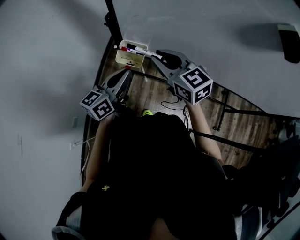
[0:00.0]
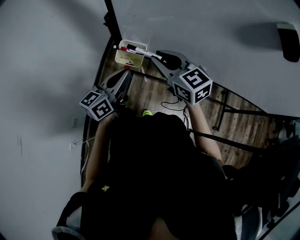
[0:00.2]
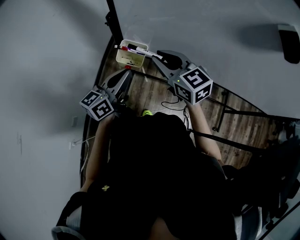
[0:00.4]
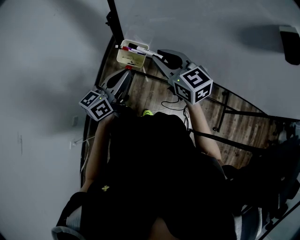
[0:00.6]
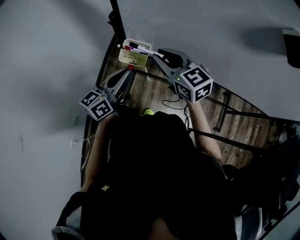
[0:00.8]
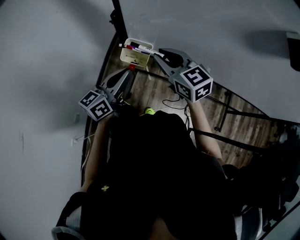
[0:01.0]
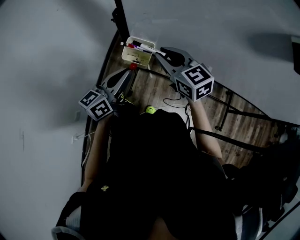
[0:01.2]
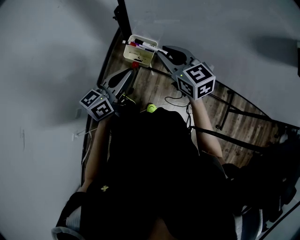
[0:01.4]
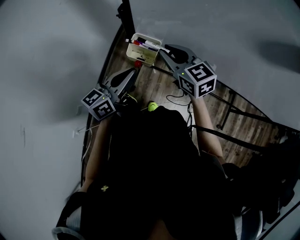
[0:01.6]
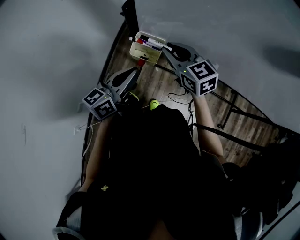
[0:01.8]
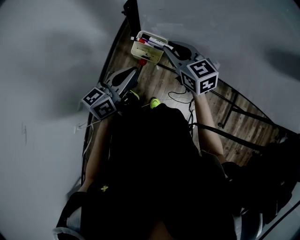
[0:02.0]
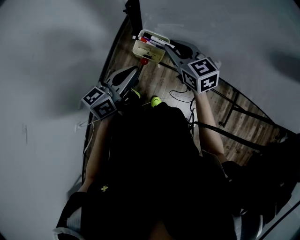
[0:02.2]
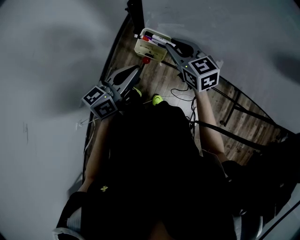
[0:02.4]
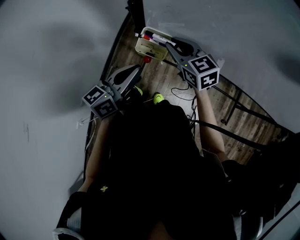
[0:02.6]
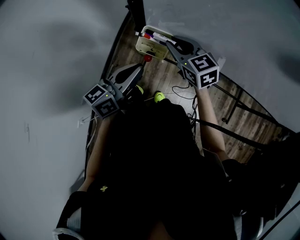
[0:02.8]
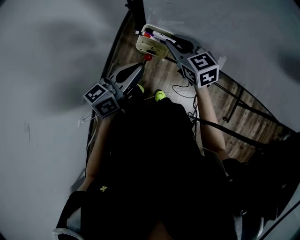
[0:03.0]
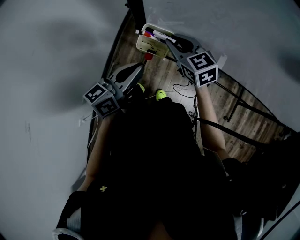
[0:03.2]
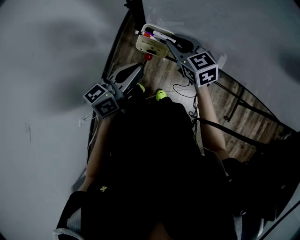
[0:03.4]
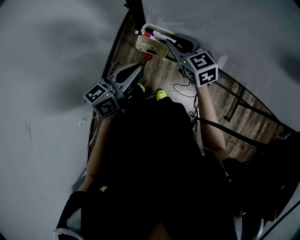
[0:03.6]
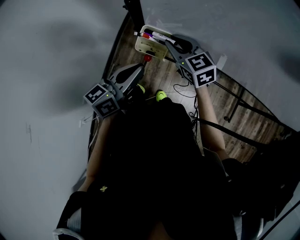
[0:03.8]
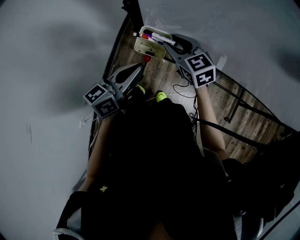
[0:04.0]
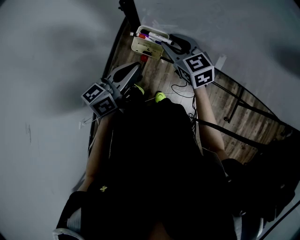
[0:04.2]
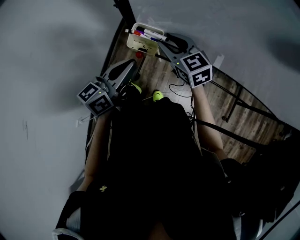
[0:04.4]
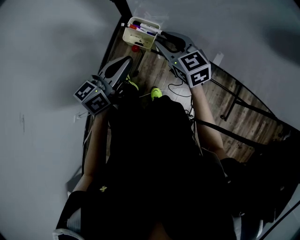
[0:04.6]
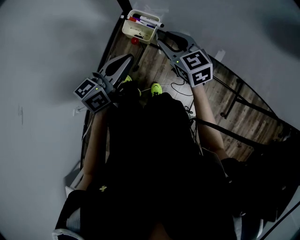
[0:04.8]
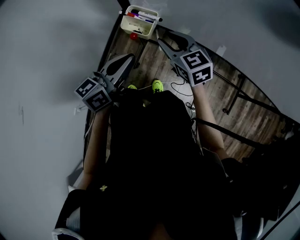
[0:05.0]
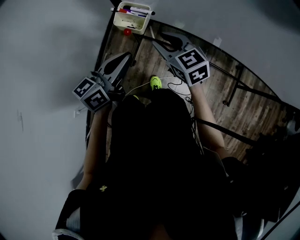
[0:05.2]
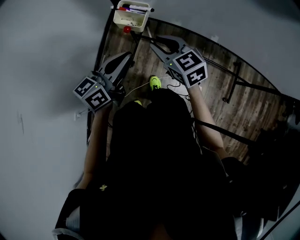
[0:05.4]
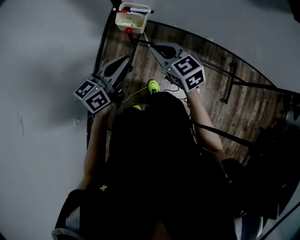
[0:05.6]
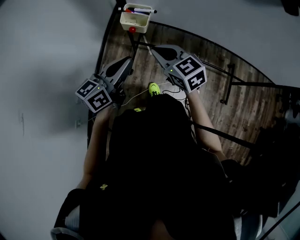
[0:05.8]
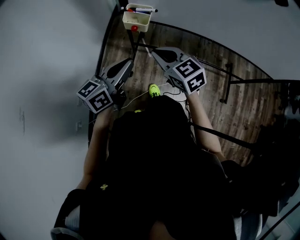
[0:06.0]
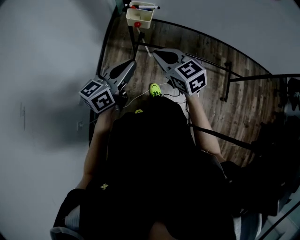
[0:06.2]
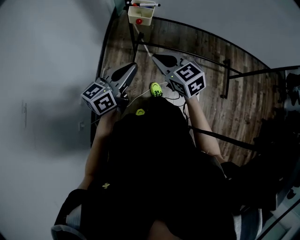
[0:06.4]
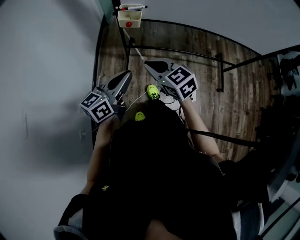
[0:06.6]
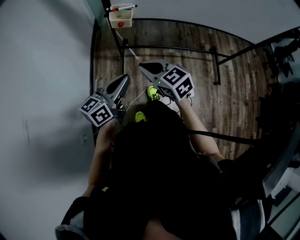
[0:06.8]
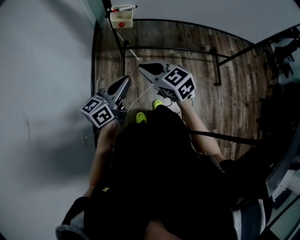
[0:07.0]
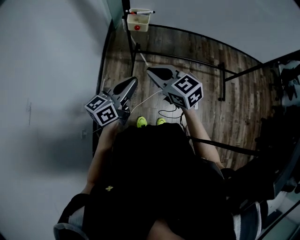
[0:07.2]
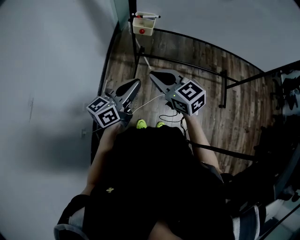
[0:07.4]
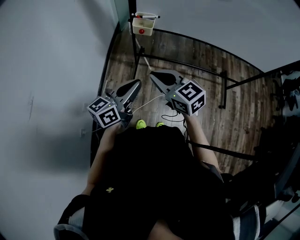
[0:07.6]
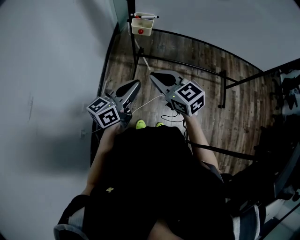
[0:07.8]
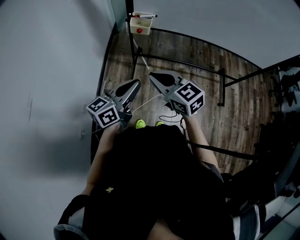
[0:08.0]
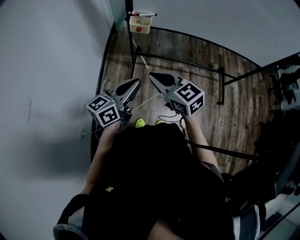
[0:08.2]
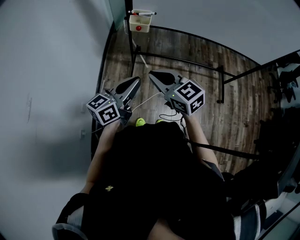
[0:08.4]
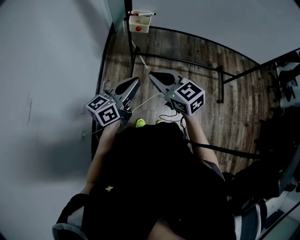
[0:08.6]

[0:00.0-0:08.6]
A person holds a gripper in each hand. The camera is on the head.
0:00.0 to 0:01.4: The grippers make only small movements.
0:01.4 to 0:02.8: The right gripper travels downward by roughly 5 cm.
0:02.8 to 0:04.4: There are only small adjustments of the grippers.
0:04.4 to 0:05.8: The two grippers go approximately 15 cm backward. The right gripper closes up.
0:05.8 to 0:07.2: The two grippers go roughly 20 cm backward.
0:07.2 to 0:08.6: The grippers make only small movements.
